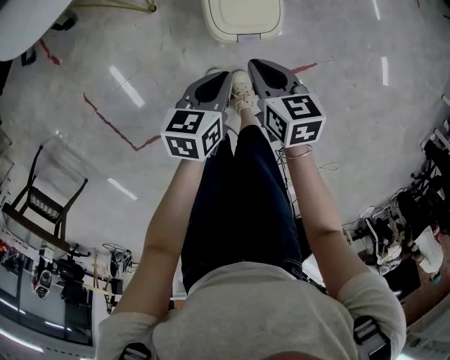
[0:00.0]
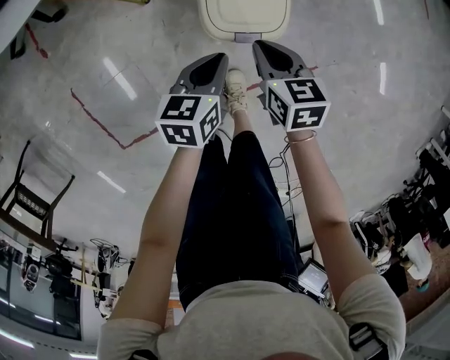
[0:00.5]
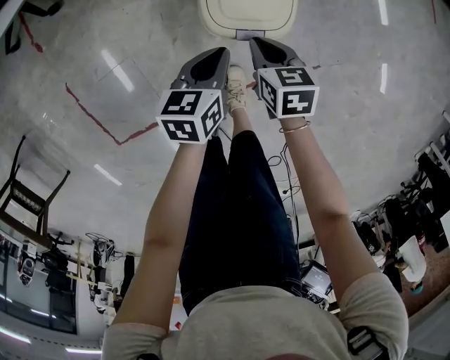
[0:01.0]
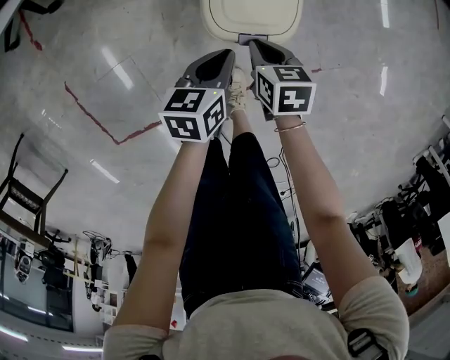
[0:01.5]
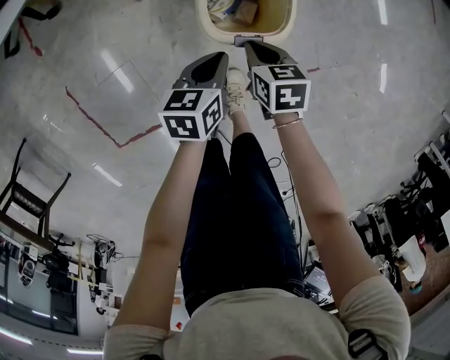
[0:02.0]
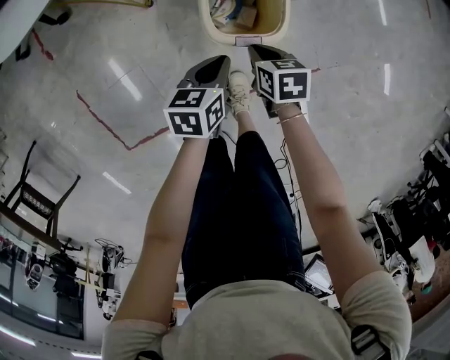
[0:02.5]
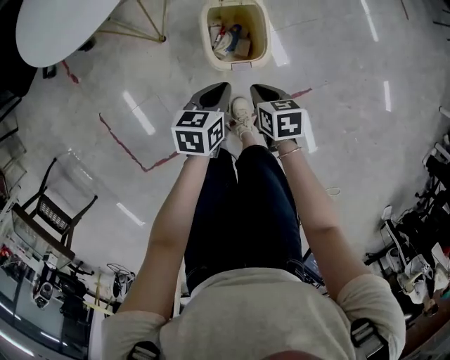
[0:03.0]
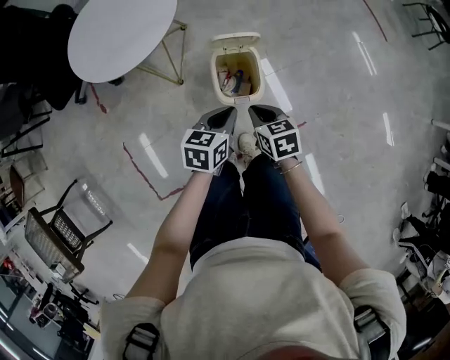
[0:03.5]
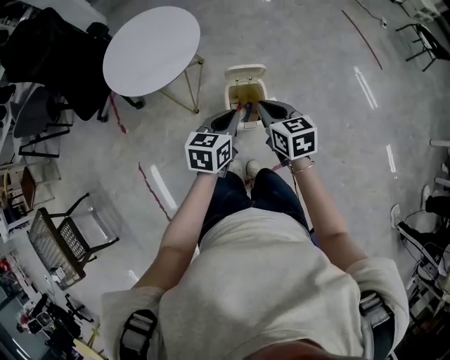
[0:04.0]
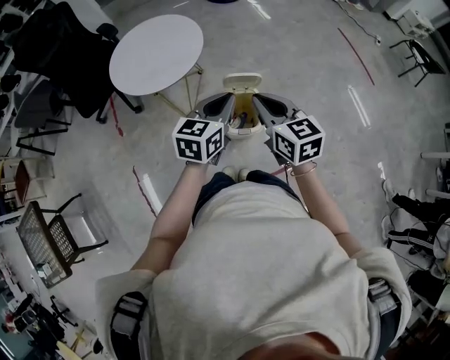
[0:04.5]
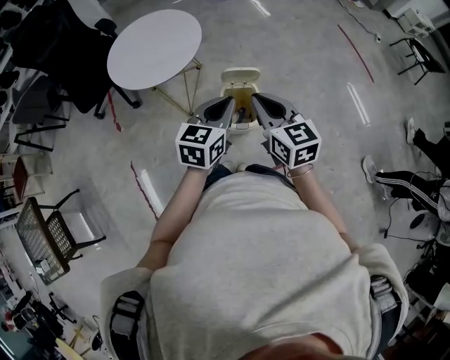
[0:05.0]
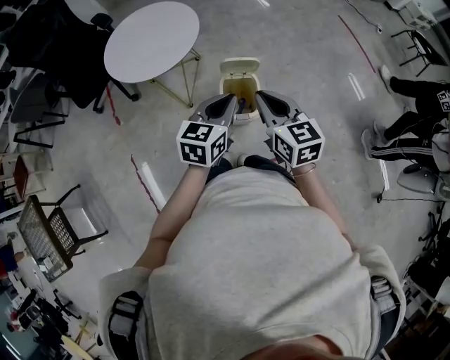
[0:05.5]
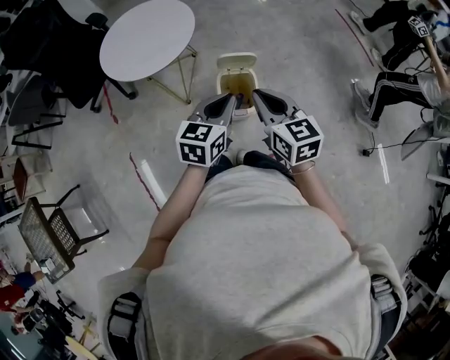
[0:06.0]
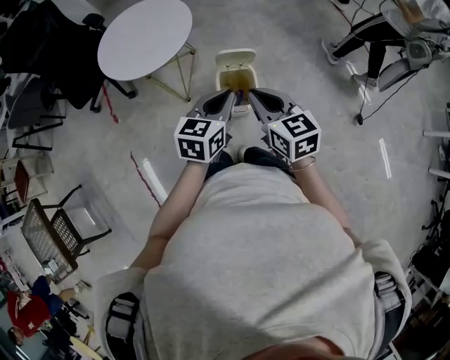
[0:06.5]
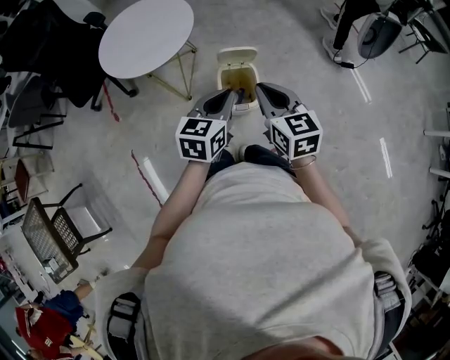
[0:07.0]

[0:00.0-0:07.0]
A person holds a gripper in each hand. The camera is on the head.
0:00.0 to 0:02.0: The two grippers go approximately 15 cm downward.
0:02.0 to 0:03.5: Both grippers move upward, approximately 30 cm.
0:03.5 to 0:05.0: Both grippers travel together upward, approximately 25 cm. The left gripper rotates approximately 20 degrees; the right gripper changes its angle by approximately 30 degrees.
0:05.0 to 0:07.0: The grippers make only small movements.

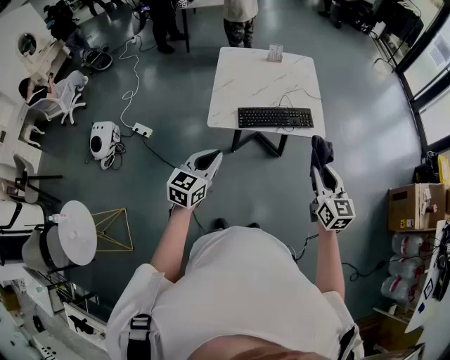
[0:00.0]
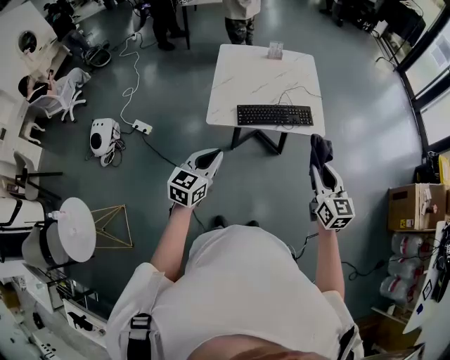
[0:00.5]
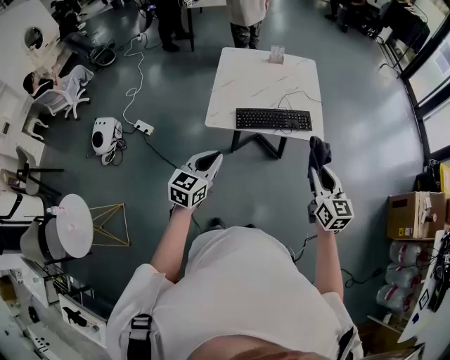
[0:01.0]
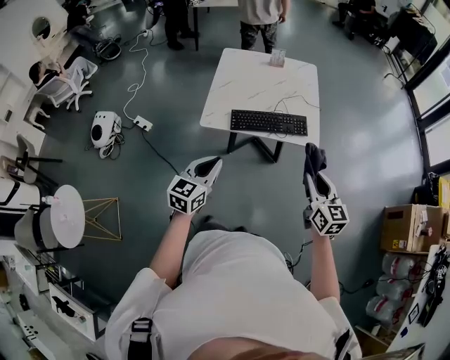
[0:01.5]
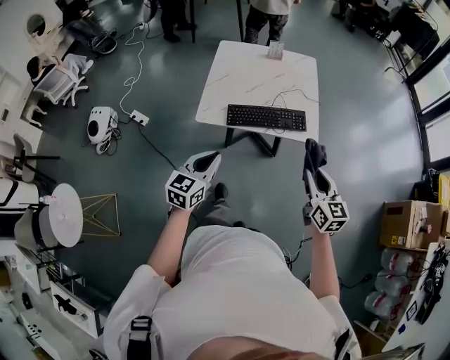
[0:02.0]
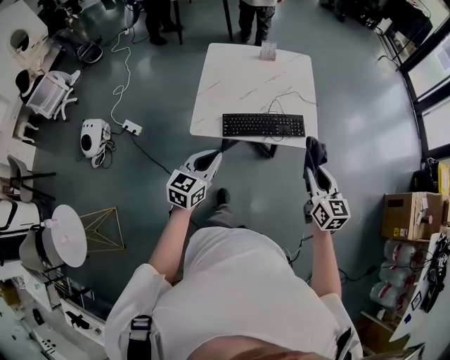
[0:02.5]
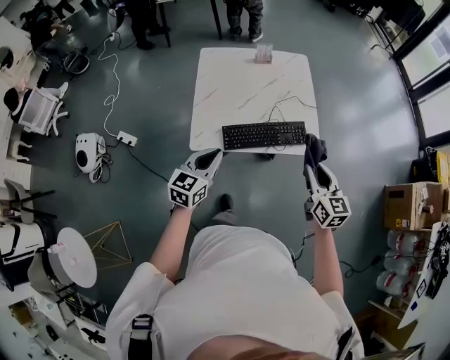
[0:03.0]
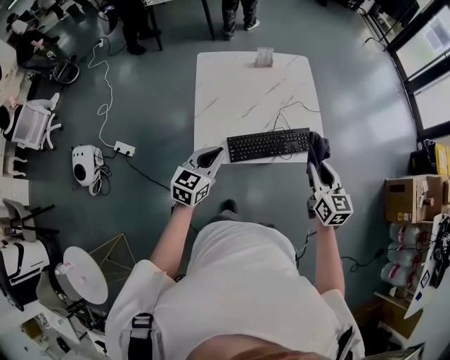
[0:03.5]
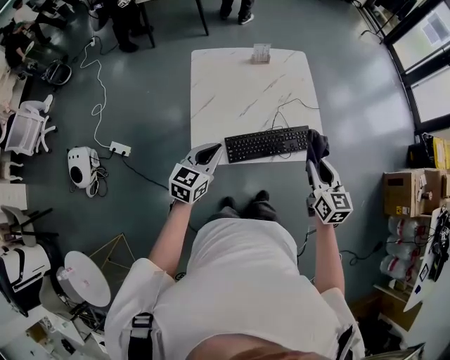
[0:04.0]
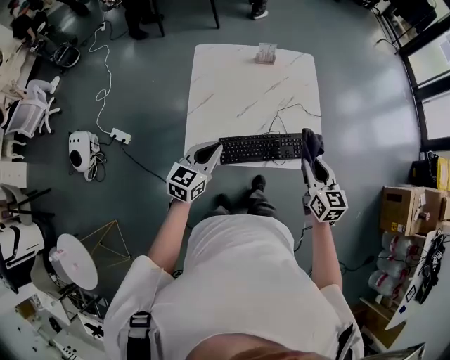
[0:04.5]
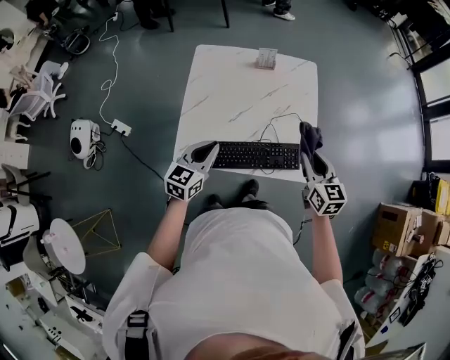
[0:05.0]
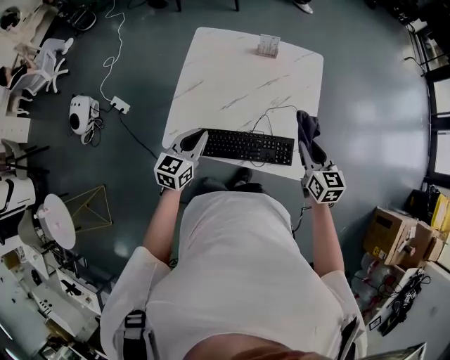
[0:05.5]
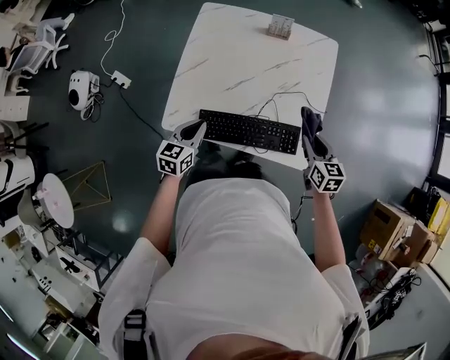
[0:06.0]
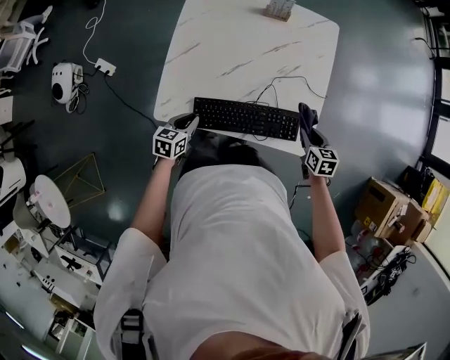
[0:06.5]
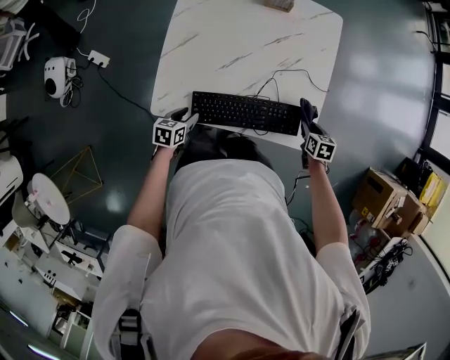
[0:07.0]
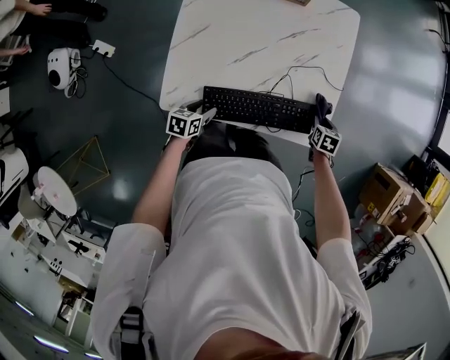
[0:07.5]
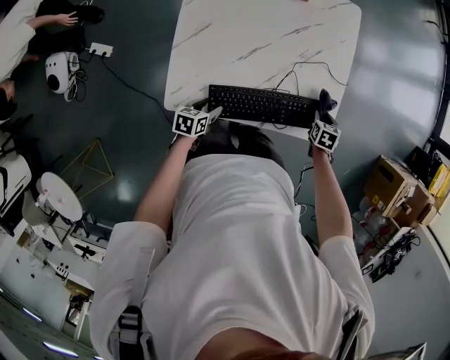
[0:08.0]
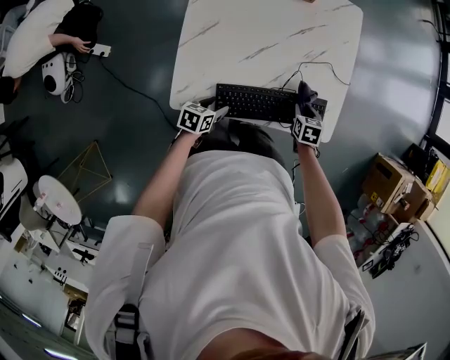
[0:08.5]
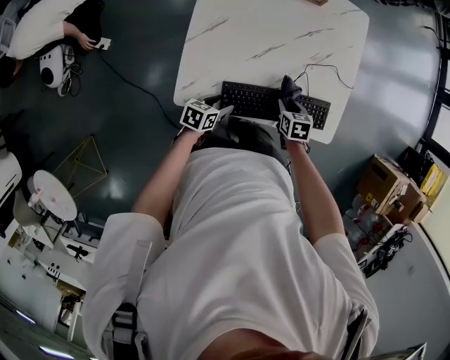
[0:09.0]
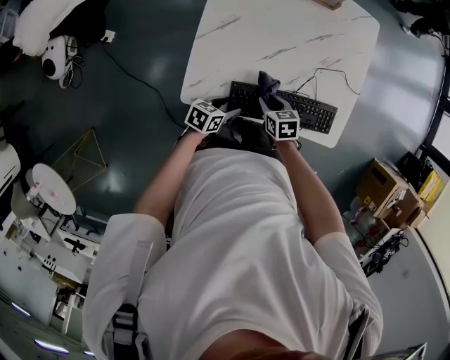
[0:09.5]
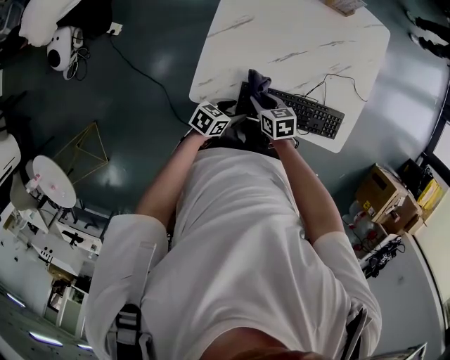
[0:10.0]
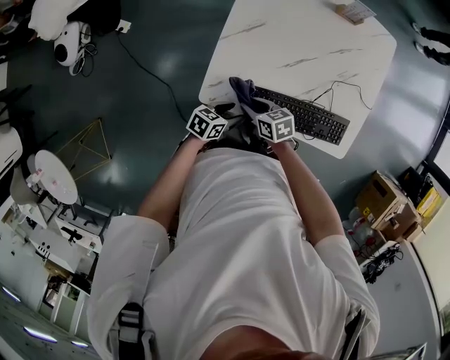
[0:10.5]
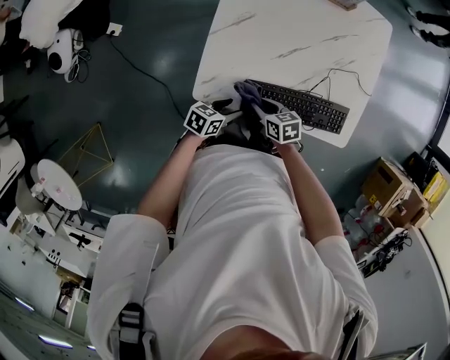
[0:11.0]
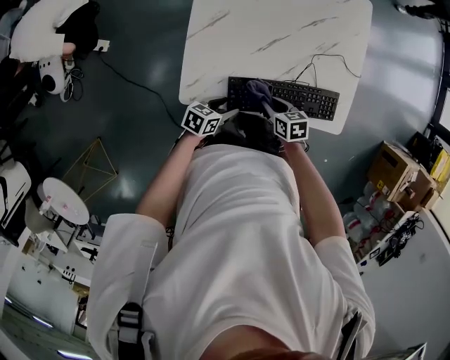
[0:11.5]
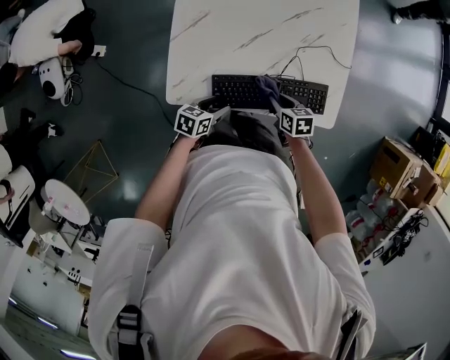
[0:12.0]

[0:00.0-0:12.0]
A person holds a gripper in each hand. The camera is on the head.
0:00.0 to 0:02.0: Both grippers travel together to the right, approximately 5 cm.
0:02.0 to 0:04.0: Both grippers move forward and to the left, about 25 cm.
0:04.0 to 0:06.0: The left gripper is displaced downward, to the right and forward by approximately 15 cm, and swivels roughly 30 degrees. Meanwhile the right gripper heads forward, downward and to the right, covering some 25 cm, and swivels about 30 degrees.
0:06.0 to 0:08.0: Both grippers move downward, some 20 cm. The right gripper angles its fingers downward, by some 30 degrees, while the left gripper turns by roughly 30 degrees, and opens up.
0:08.0 to 0:10.0: The right gripper moves approximately 40 cm, and changes its angle by roughly 40 degrees.
0:10.0 to 0:12.0: The right gripper changes place by approximately 15 cm.

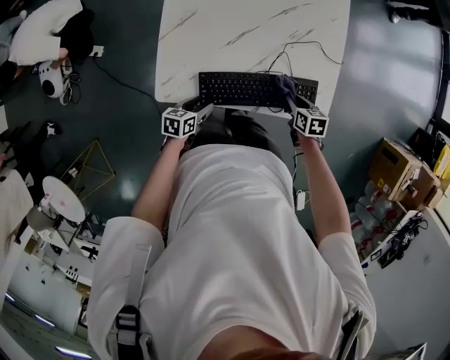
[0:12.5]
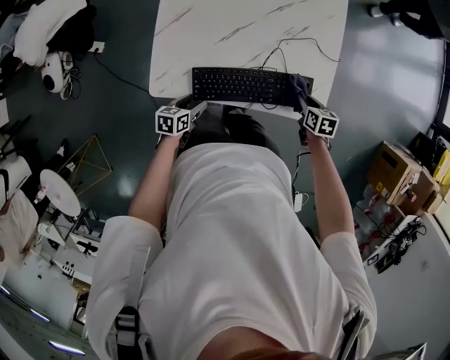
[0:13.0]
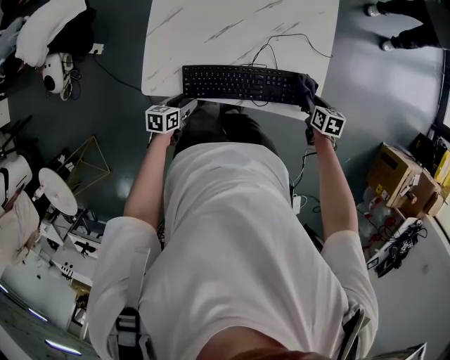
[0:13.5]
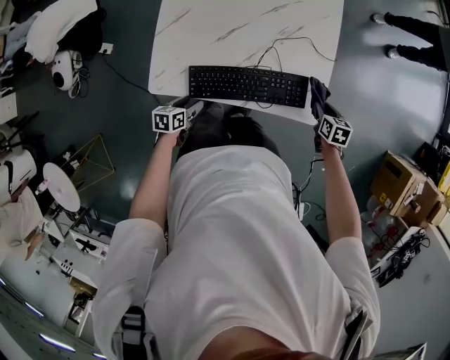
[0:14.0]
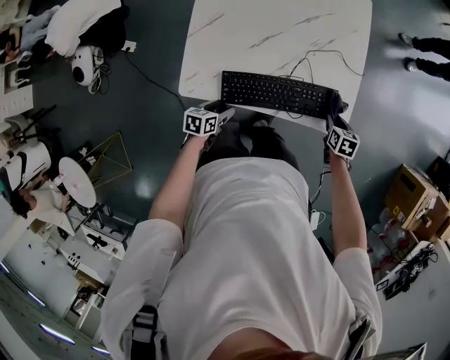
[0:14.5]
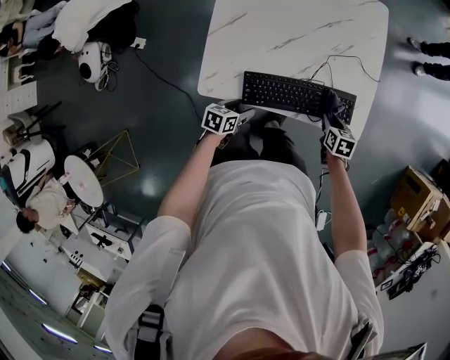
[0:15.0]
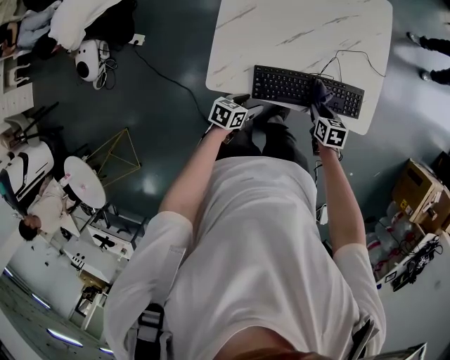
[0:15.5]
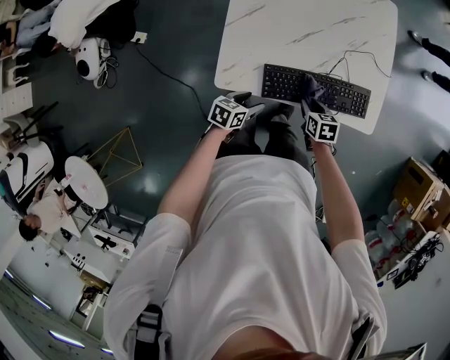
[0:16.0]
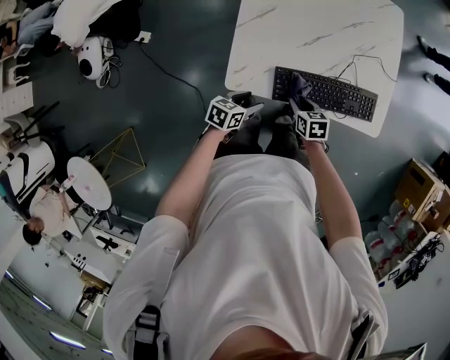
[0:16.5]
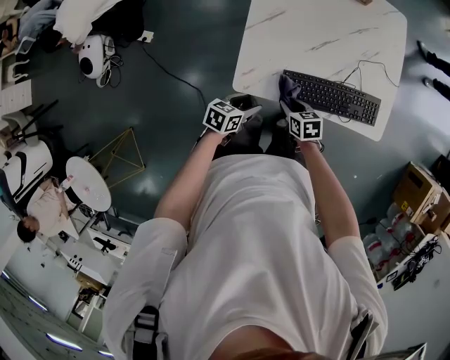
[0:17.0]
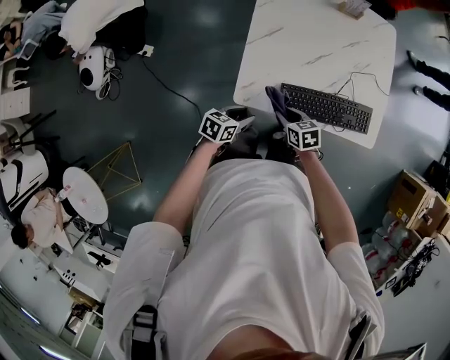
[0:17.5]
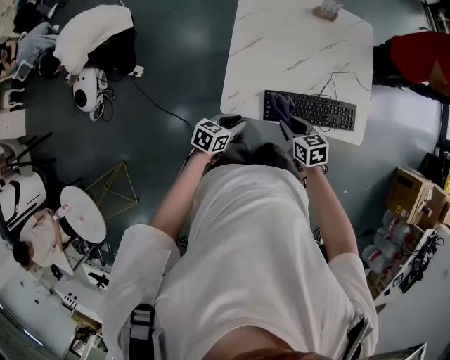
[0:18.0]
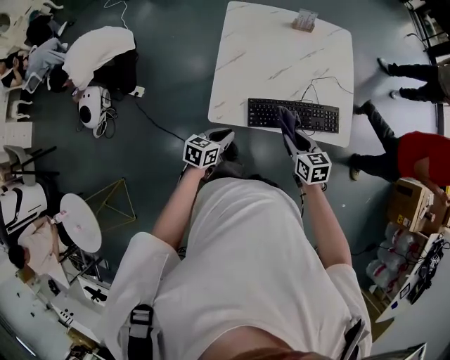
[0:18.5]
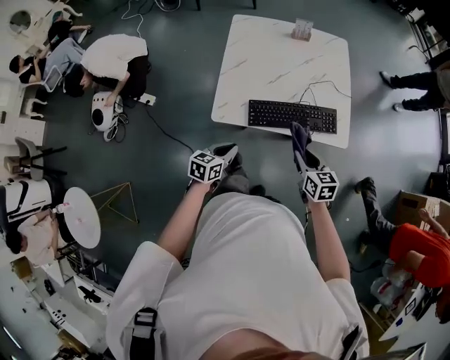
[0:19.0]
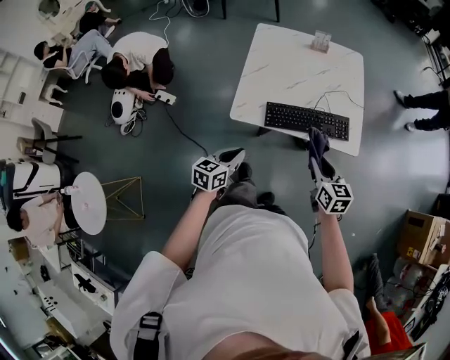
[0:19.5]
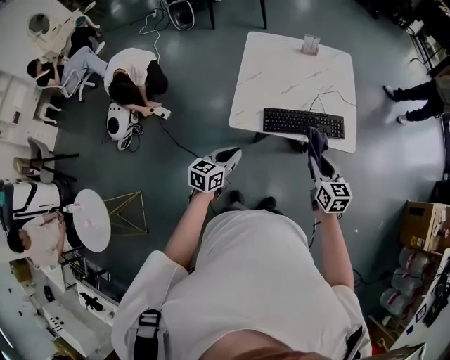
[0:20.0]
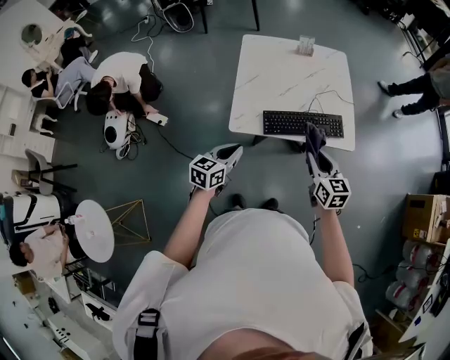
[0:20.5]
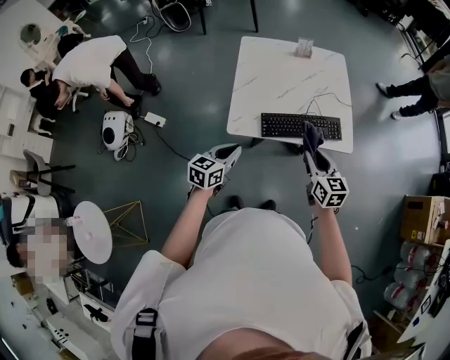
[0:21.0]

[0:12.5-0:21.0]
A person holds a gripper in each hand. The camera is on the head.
0:12.5 to 0:14.5: The right gripper heads to the right, covering about 10 cm.
0:14.5 to 0:16.5: The right gripper heads to the left, covering some 35 cm; the left gripper goes some 10 cm to the left.
0:16.5 to 0:19.0: The right gripper shifts approximately 25 cm upward, to the right and backward, and turns by roughly 30 degrees. Meanwhile the left gripper goes about 15 cm upward and backward, and closes its fingers.
0:19.0 to 0:21.0: The two grippers go roughly 10 cm upward.
